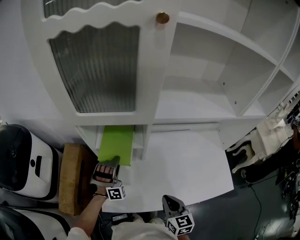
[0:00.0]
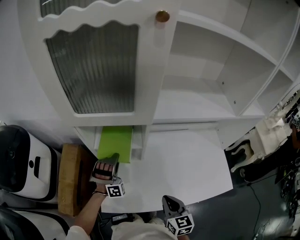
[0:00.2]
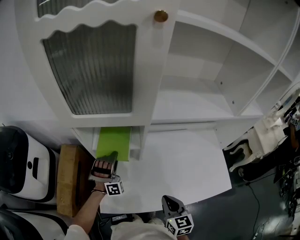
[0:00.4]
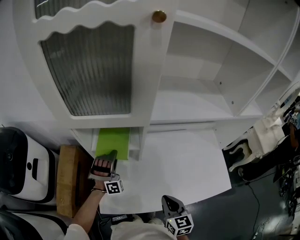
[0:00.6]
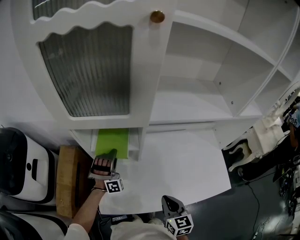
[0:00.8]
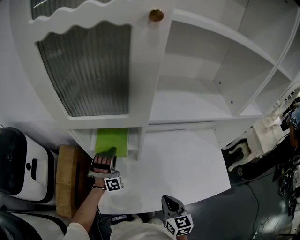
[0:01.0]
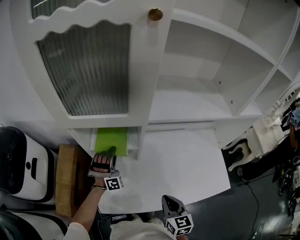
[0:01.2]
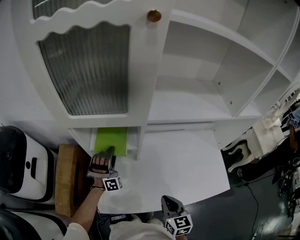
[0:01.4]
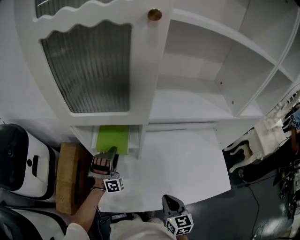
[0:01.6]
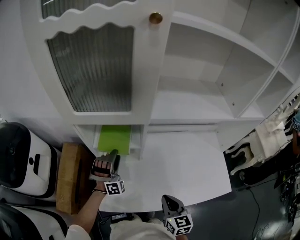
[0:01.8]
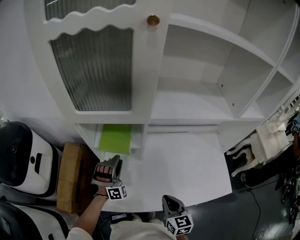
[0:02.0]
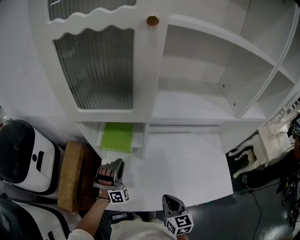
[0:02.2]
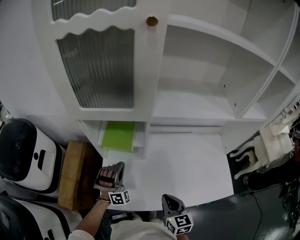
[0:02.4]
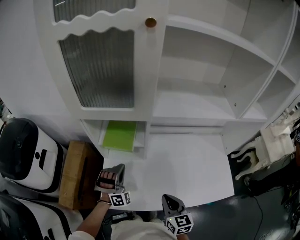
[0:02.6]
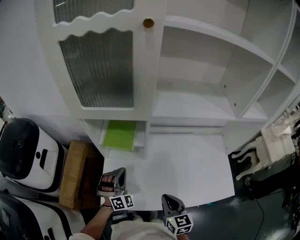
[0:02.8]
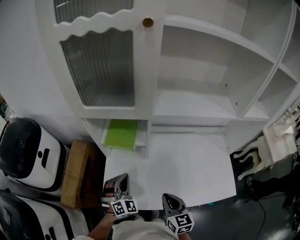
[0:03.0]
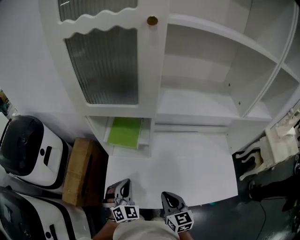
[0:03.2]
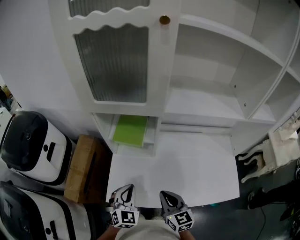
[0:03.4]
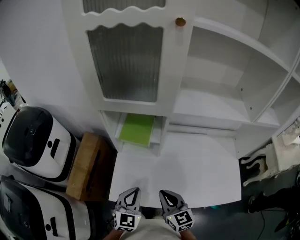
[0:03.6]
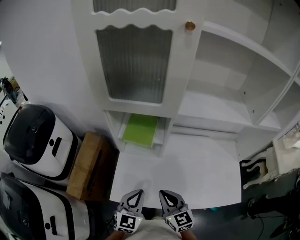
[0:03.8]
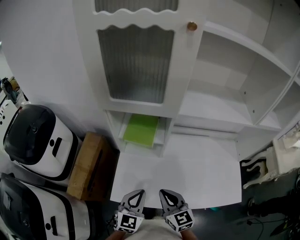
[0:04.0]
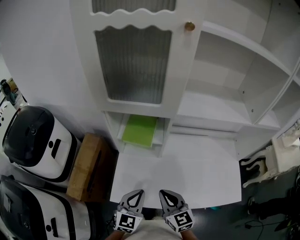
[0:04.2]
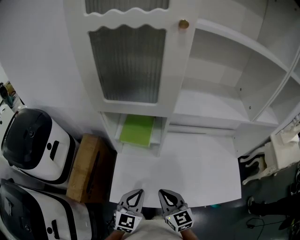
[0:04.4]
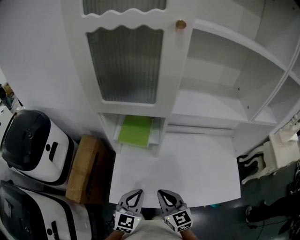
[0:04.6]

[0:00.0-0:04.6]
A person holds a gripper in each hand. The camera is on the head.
0:03.0 to 0:04.6: The right gripper changes place by some 10 cm.

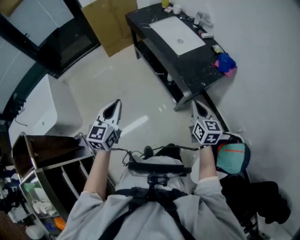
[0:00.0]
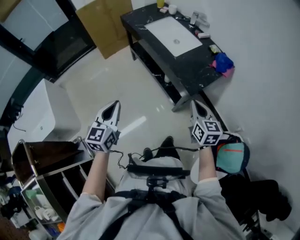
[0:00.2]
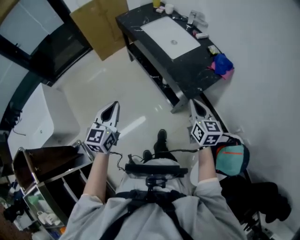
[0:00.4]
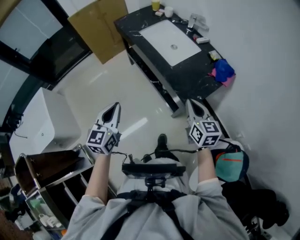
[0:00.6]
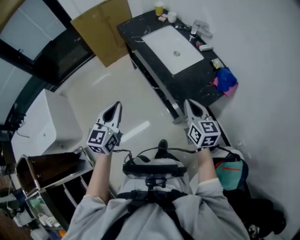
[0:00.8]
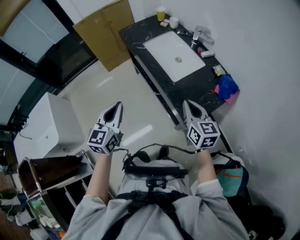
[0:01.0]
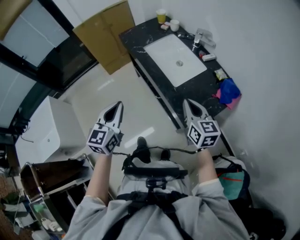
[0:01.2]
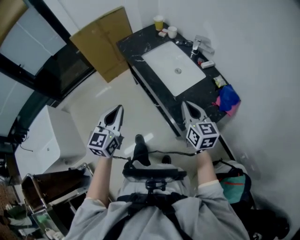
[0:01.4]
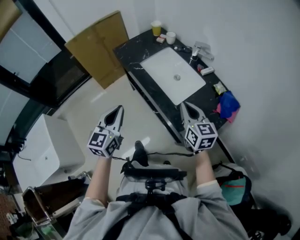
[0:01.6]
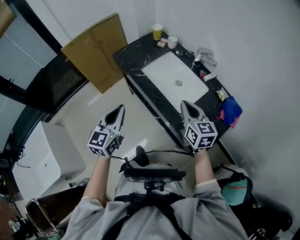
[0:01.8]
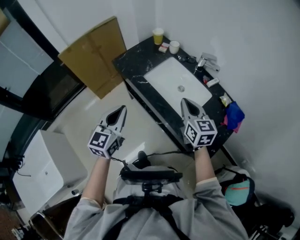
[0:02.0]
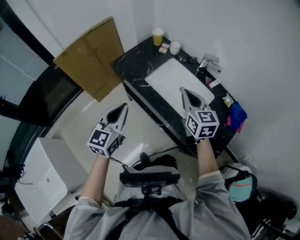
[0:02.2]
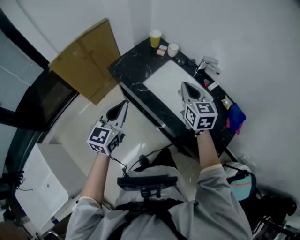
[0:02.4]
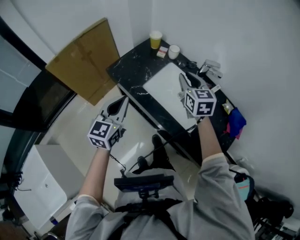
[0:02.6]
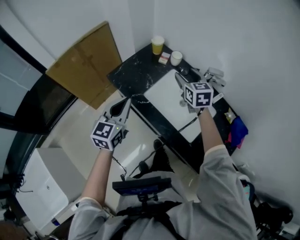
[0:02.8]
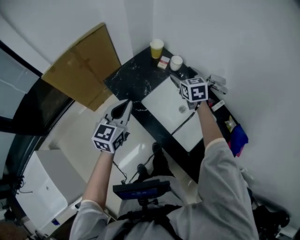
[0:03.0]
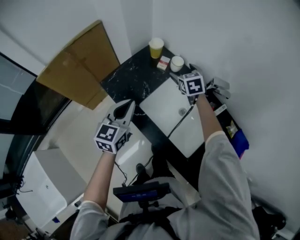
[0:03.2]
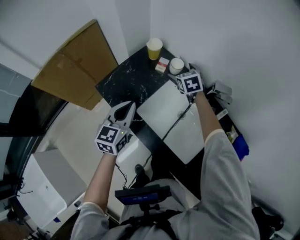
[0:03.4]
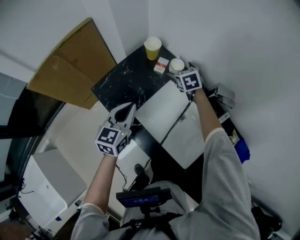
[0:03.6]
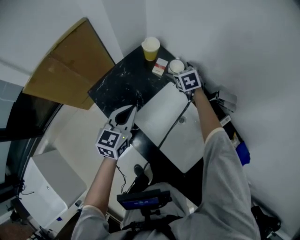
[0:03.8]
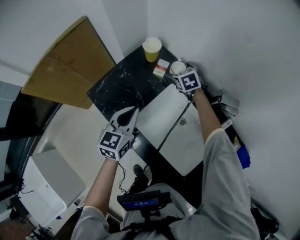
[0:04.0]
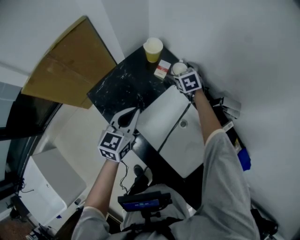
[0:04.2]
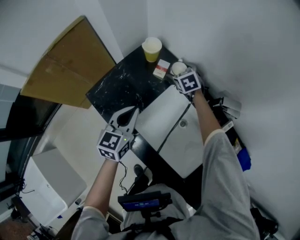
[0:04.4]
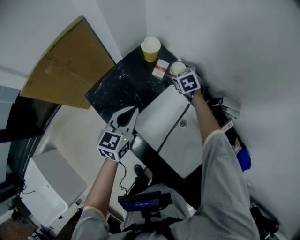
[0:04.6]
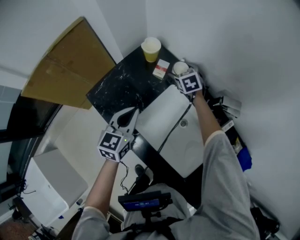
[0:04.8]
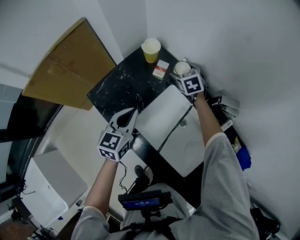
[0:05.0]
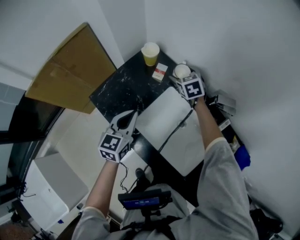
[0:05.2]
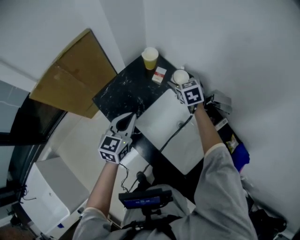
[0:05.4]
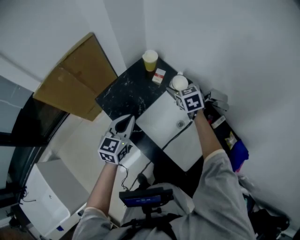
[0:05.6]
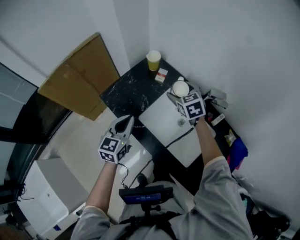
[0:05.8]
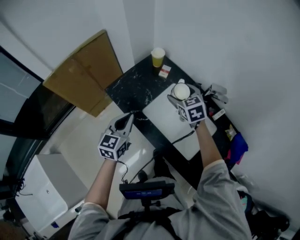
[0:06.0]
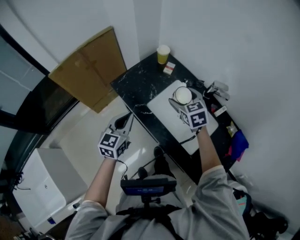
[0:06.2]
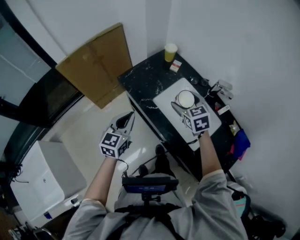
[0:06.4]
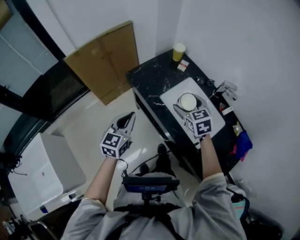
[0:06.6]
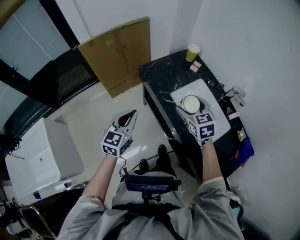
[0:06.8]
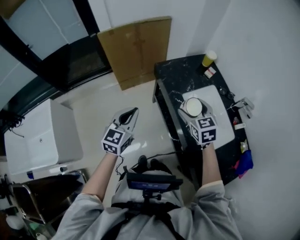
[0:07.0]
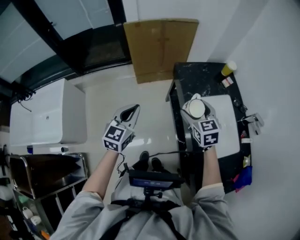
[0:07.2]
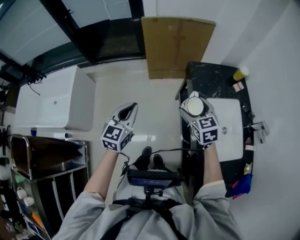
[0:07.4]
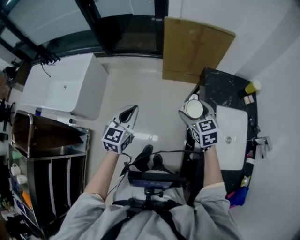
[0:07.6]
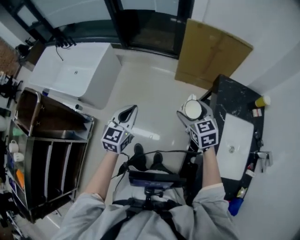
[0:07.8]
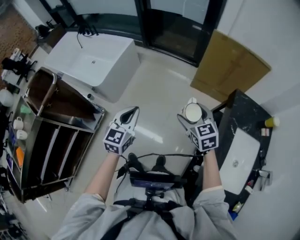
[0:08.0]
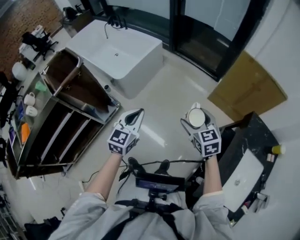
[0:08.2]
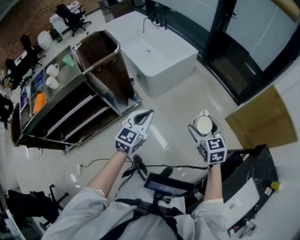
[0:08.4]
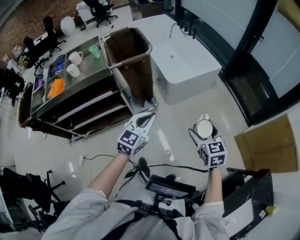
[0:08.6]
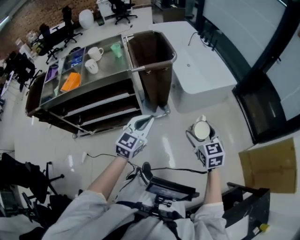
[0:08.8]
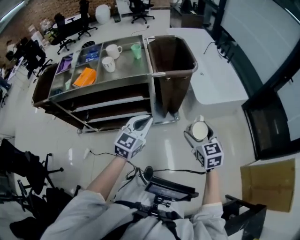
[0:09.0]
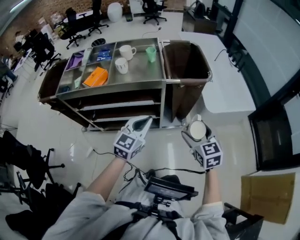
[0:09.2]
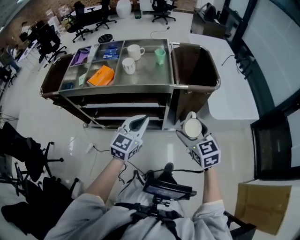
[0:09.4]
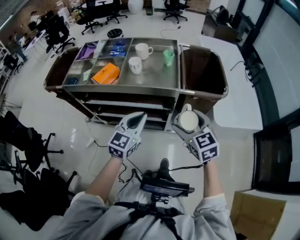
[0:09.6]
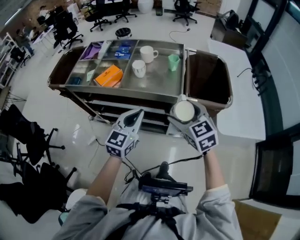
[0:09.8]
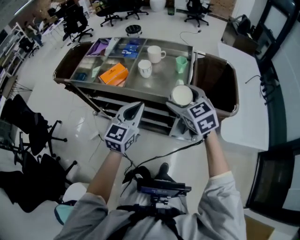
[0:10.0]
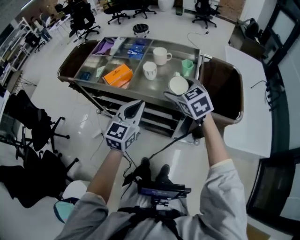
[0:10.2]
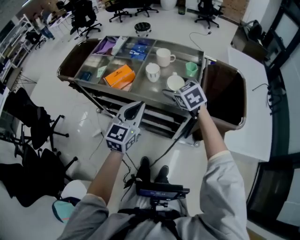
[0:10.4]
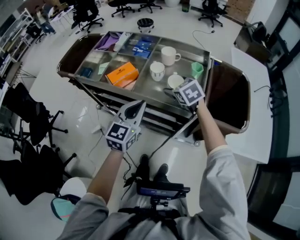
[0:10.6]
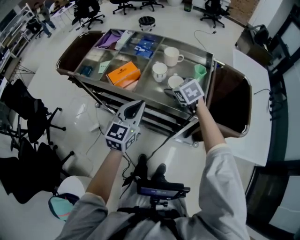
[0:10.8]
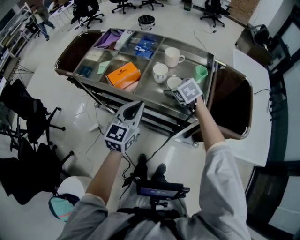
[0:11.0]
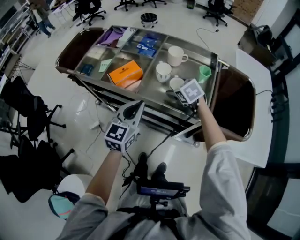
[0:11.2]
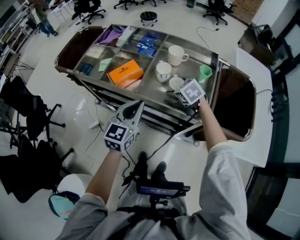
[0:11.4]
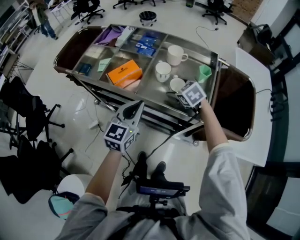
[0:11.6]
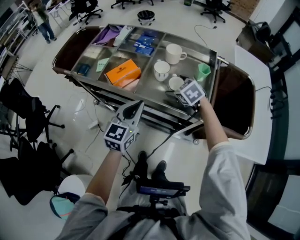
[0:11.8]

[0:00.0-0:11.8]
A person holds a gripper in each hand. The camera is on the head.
0:00.0 to 0:01.4: The grippers both shift forward by approximately 25 cm.
0:01.4 to 0:03.0: The pair of grippers is taken forward, some 50 cm. The right gripper changes its angle by some 20 degrees, and opens up.
0:03.0 to 0:04.4: The right gripper moves downward and forward, approximately 25 cm, and turns by approximately 20 degrees; the left gripper heads forward and downward, covering some 20 cm.
0:04.4 to 0:06.0: The right gripper is displaced backward and upward by roughly 30 cm, while the left gripper heads backward, upward and to the left, covering about 15 cm.
0:06.0 to 0:07.4: The right gripper changes place by some 35 cm, and rotates about 40 degrees; the left gripper changes place by some 35 cm, and changes its angle by some 40 degrees.
0:07.4 to 0:08.8: The two grippers travel together, about 60 cm. The right gripper rotates some 70 degrees; the left gripper swivels some 70 degrees.
0:08.8 to 0:10.4: The left gripper ends up some 35 cm from where it was, and rotates about 40 degrees; the right gripper moves roughly 60 cm, and changes its angle by some 50 degrees.
0:10.4 to 0:11.8: The right gripper goes roughly 10 cm downward and forward. The left gripper heads forward, covering some 5 cm.

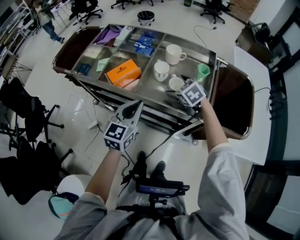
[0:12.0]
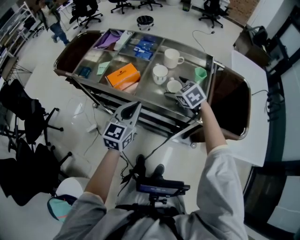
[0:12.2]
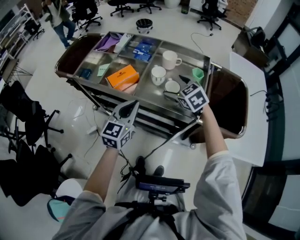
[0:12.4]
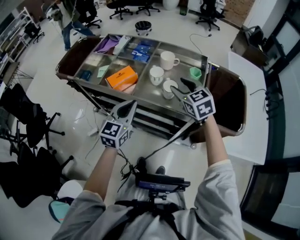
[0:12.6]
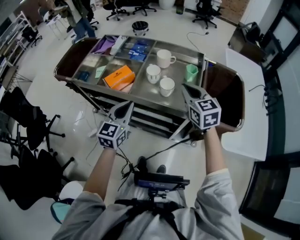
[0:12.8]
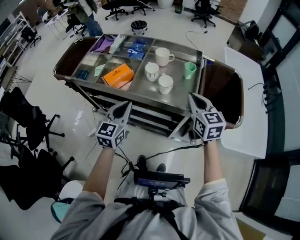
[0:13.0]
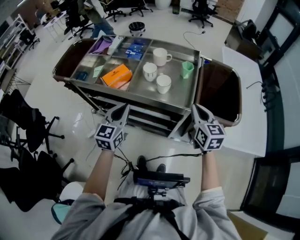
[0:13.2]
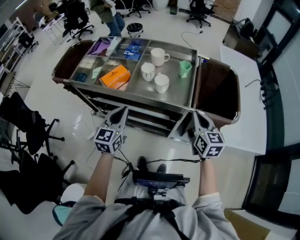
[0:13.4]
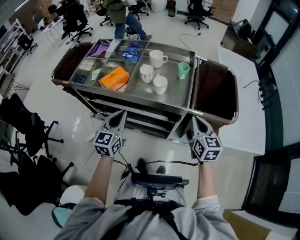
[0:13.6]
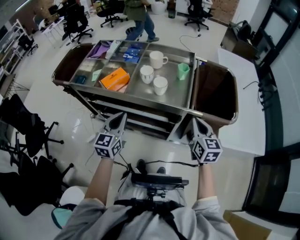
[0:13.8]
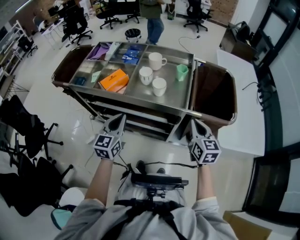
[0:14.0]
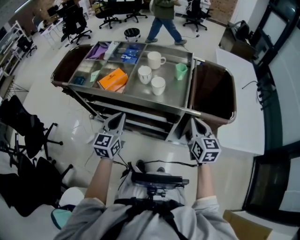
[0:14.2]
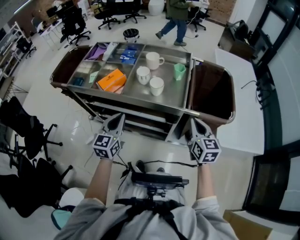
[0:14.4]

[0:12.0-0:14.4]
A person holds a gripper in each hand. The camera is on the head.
0:12.0 to 0:13.2: The right gripper shifts roughly 25 cm backward, to the right and upward, tilts its fingers about 30 degrees upward, and closes.
0:13.2 to 0:14.4: The right gripper is displaced backward by approximately 5 cm.

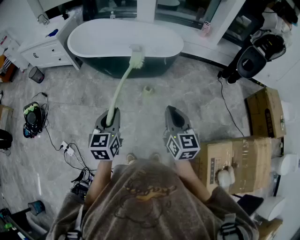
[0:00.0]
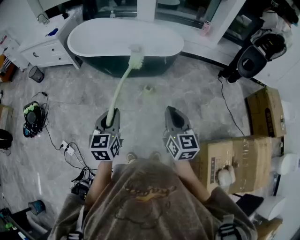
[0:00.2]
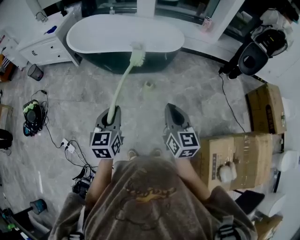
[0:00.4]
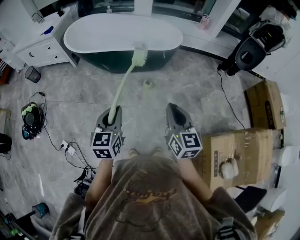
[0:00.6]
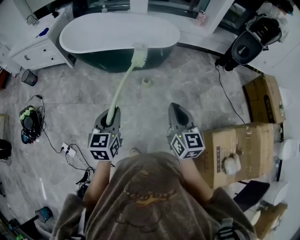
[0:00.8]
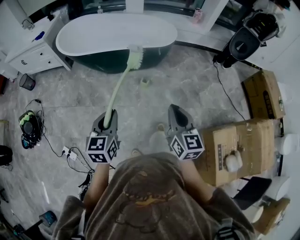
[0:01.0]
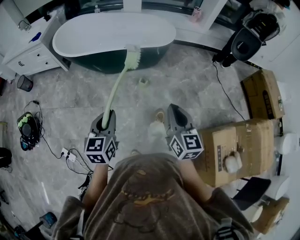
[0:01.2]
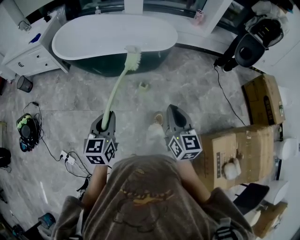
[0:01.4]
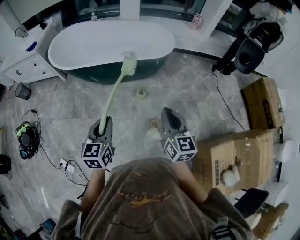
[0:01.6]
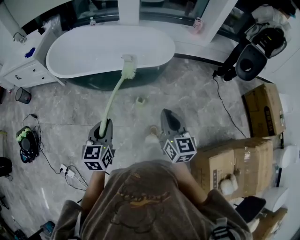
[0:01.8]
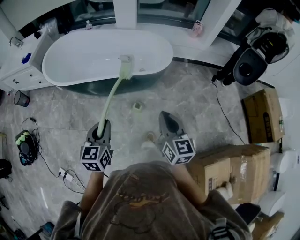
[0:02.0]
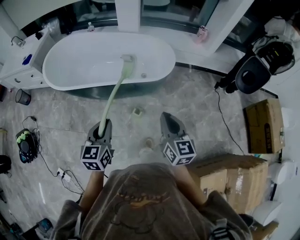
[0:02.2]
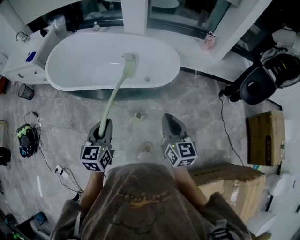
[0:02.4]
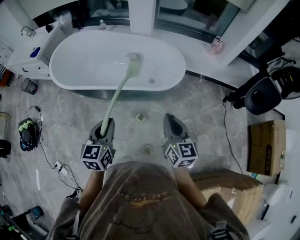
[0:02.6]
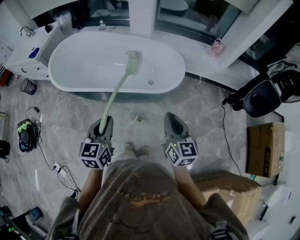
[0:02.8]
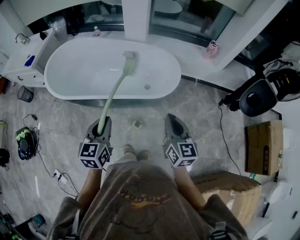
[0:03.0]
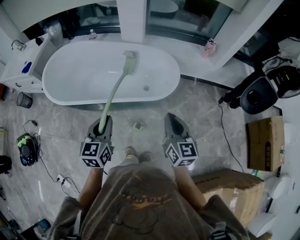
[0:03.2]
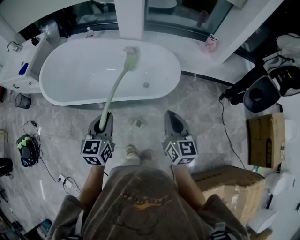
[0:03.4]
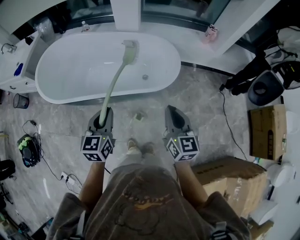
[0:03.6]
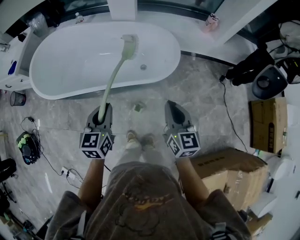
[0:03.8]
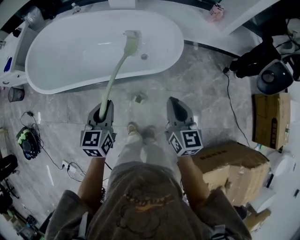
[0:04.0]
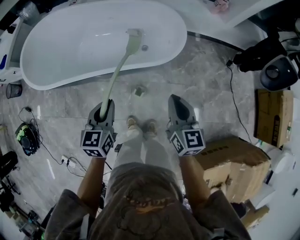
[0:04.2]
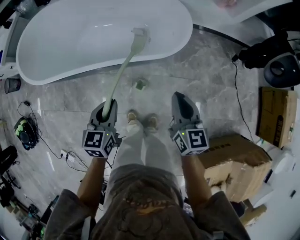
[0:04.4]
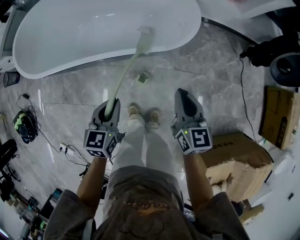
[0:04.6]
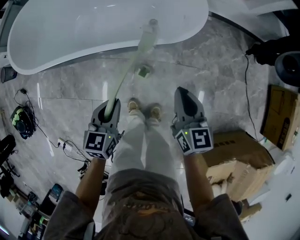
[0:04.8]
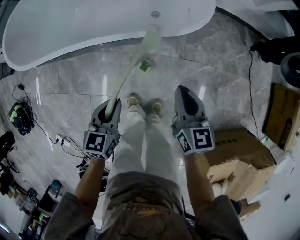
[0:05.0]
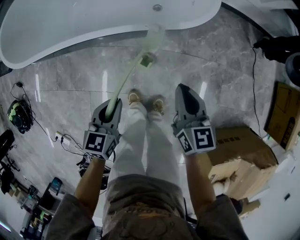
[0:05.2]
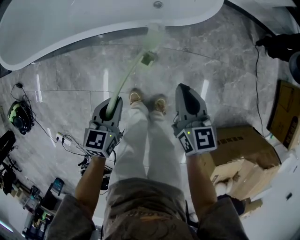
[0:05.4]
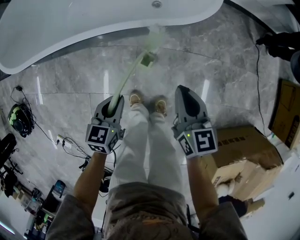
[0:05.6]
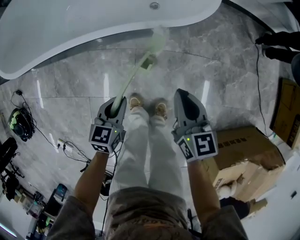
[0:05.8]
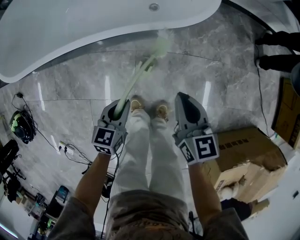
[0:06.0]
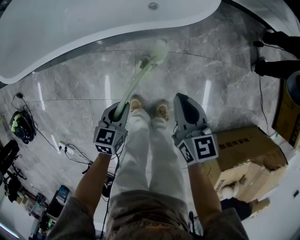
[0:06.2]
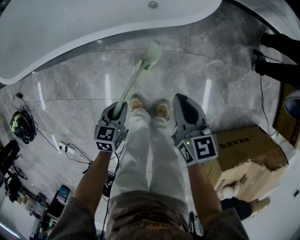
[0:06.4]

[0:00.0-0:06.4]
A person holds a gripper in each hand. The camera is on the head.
0:00.0 to 0:01.6: The two grippers go about 10 cm forward and downward.
0:01.6 to 0:03.2: The two grippers go some 35 cm forward.
0:03.2 to 0:04.8: The two grippers go roughly 25 cm downward.
0:04.8 to 0:06.4: The right gripper shifts some 15 cm downward. Meanwhile the left gripper shifts roughly 20 cm downward.
